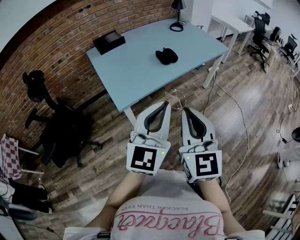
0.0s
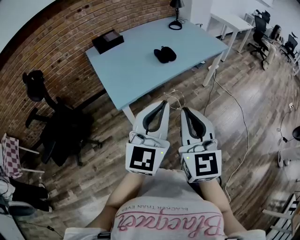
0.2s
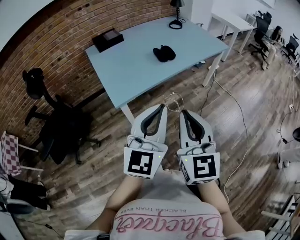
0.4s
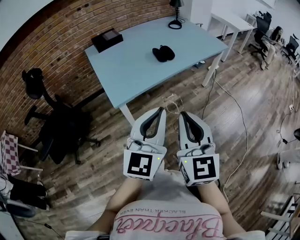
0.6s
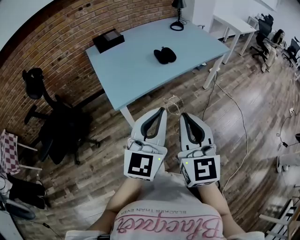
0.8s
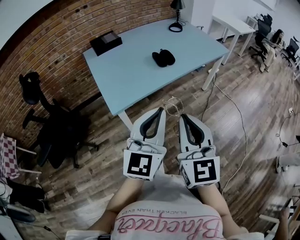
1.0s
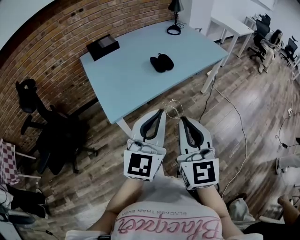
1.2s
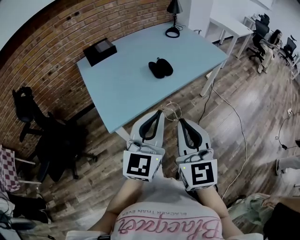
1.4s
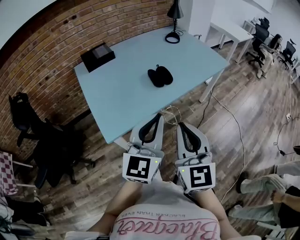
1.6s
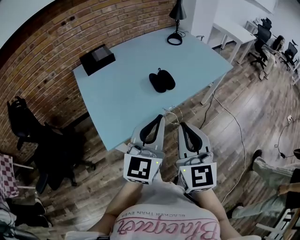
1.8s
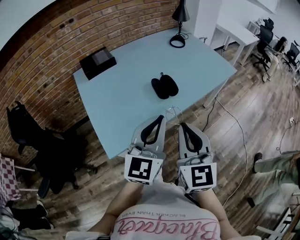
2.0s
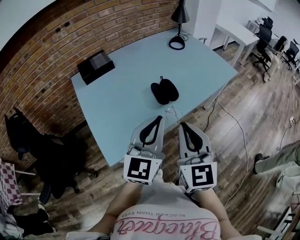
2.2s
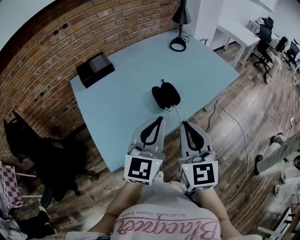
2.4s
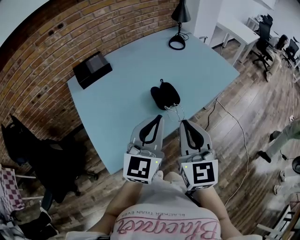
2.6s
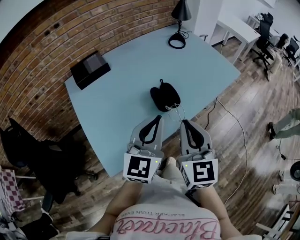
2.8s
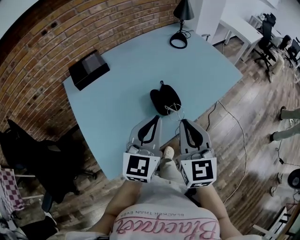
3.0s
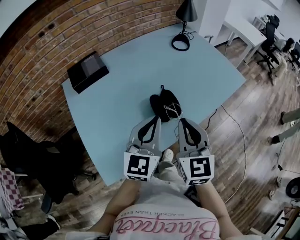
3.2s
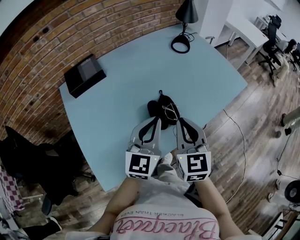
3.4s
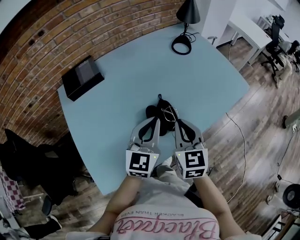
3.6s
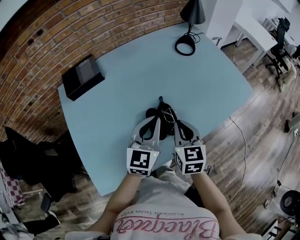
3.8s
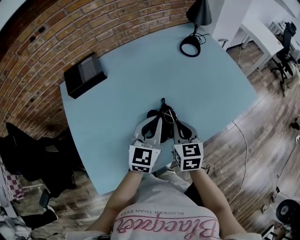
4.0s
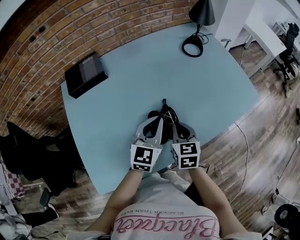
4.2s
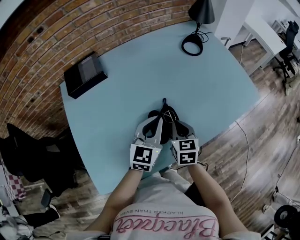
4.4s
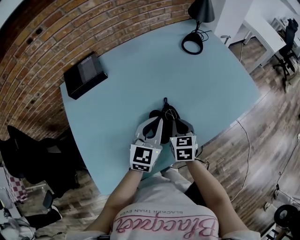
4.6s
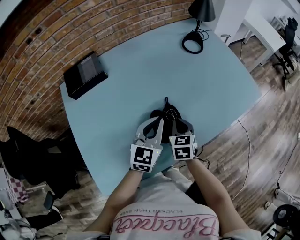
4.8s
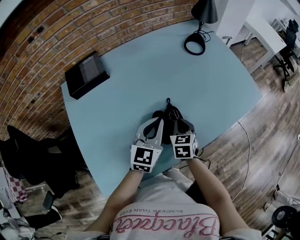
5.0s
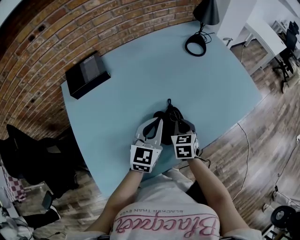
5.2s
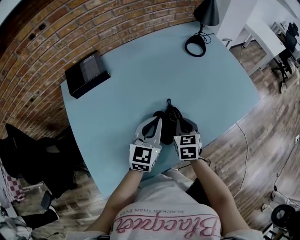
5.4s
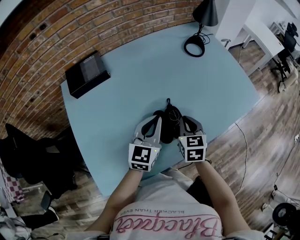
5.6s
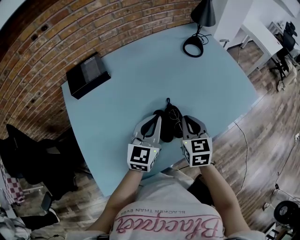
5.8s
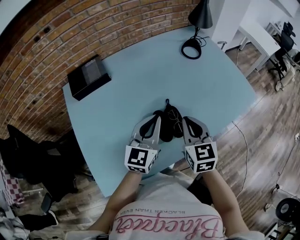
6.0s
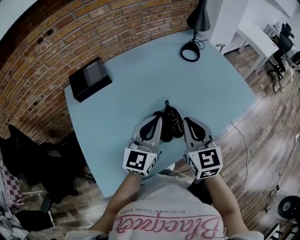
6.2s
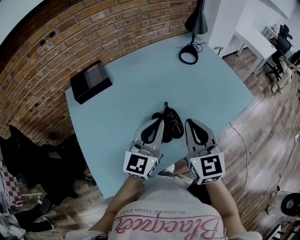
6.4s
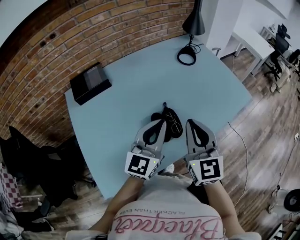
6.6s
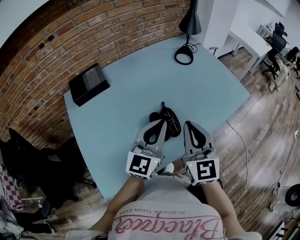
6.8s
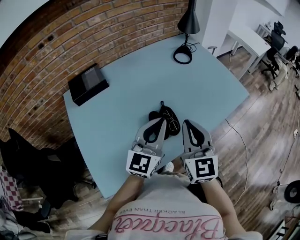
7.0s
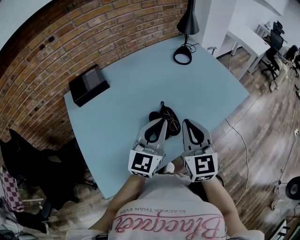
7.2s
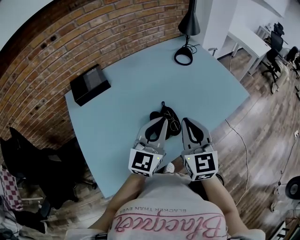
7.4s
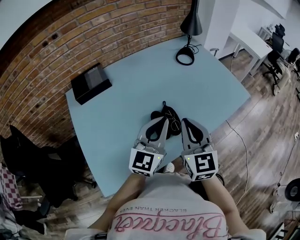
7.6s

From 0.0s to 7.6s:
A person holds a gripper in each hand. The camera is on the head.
From 0.0s to 1.6s: Both grippers move forward, about 15 cm.
From 1.6s to 3.0s: Both grippers move forward, approximately 25 cm.
From 3.0s to 4.6s: The right gripper shifts about 30 cm downward and forward, and rotates some 30 degrees; the left gripper heads forward and downward, covering some 20 cm.
From 4.6s to 6.0s: The right gripper goes approximately 15 cm upward, while the left gripper goes approximately 5 cm upward.
From 6.0s to 7.6s: Both grippers travel together upward and backward, about 10 cm.

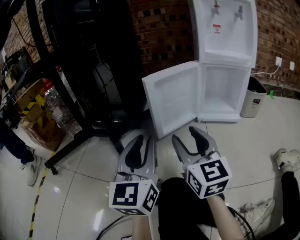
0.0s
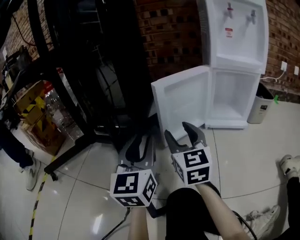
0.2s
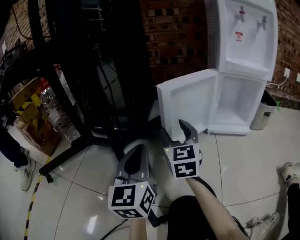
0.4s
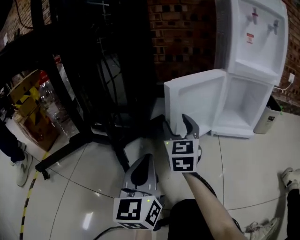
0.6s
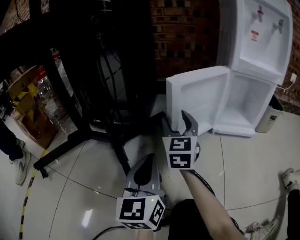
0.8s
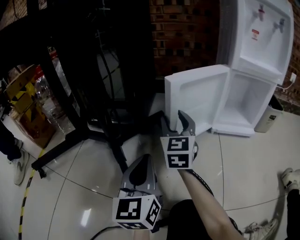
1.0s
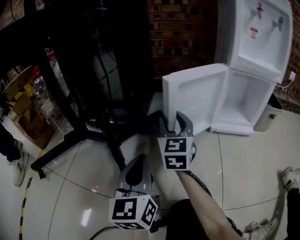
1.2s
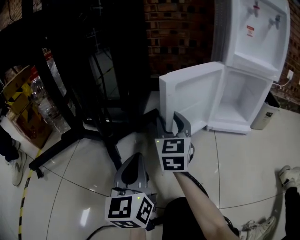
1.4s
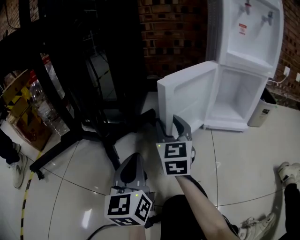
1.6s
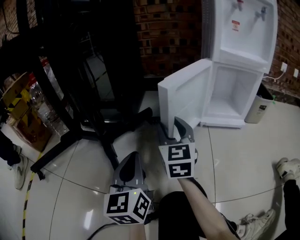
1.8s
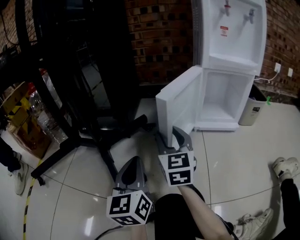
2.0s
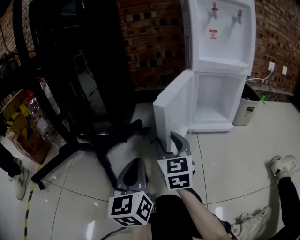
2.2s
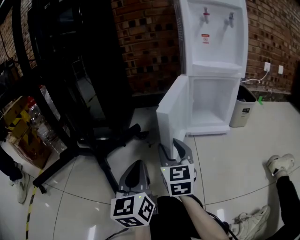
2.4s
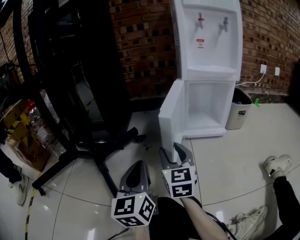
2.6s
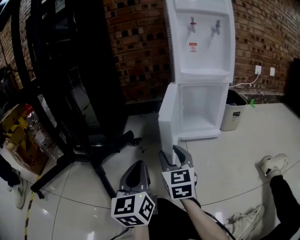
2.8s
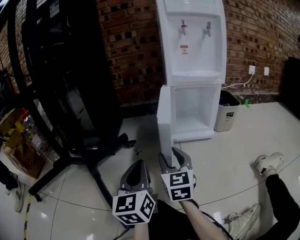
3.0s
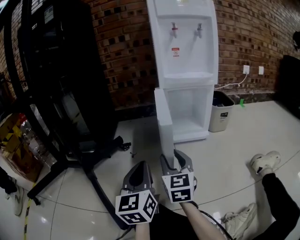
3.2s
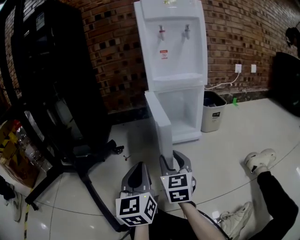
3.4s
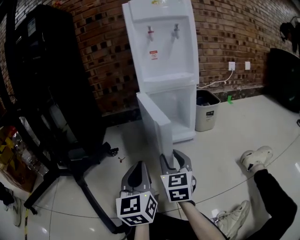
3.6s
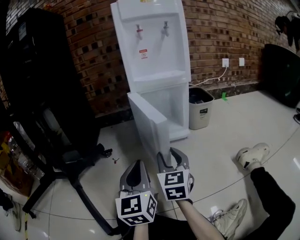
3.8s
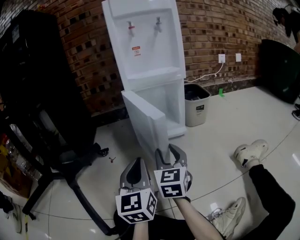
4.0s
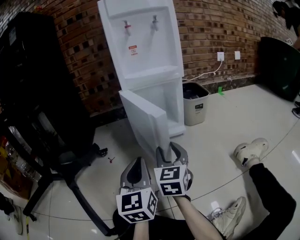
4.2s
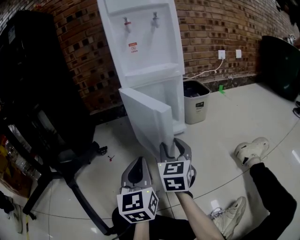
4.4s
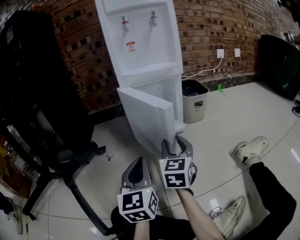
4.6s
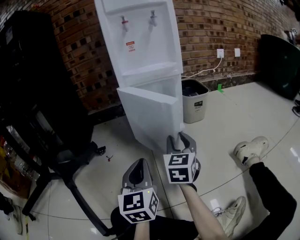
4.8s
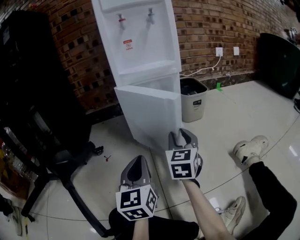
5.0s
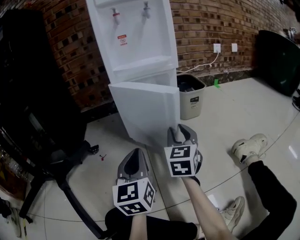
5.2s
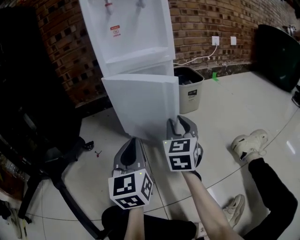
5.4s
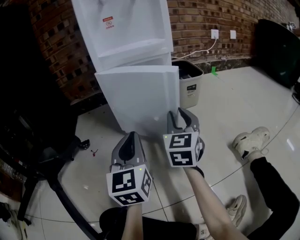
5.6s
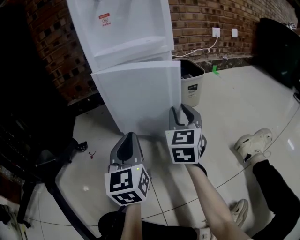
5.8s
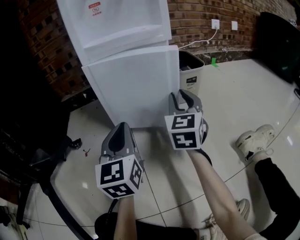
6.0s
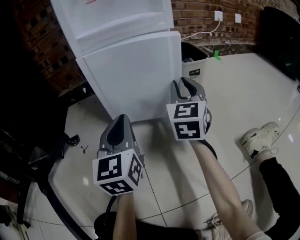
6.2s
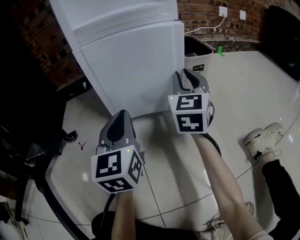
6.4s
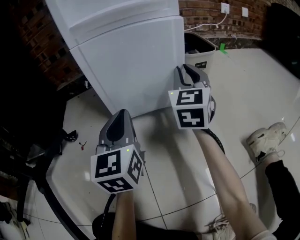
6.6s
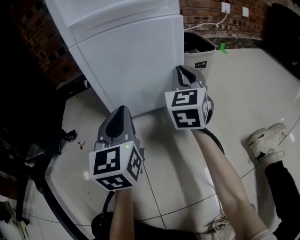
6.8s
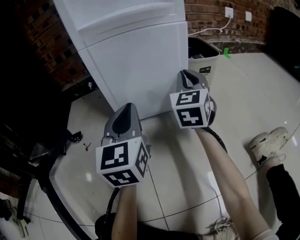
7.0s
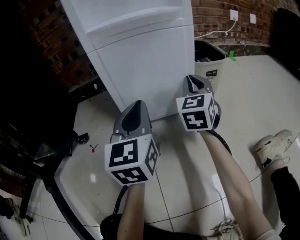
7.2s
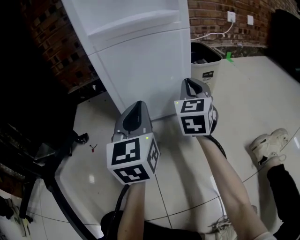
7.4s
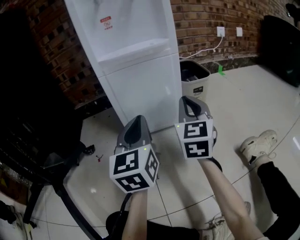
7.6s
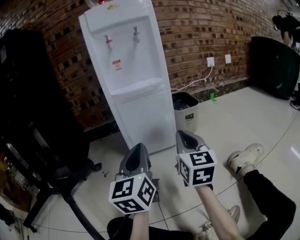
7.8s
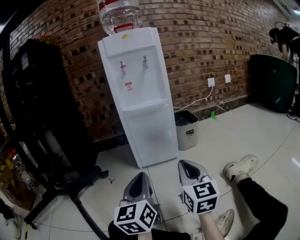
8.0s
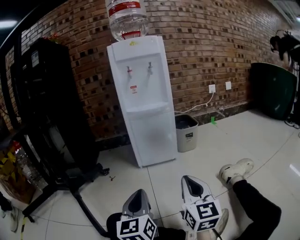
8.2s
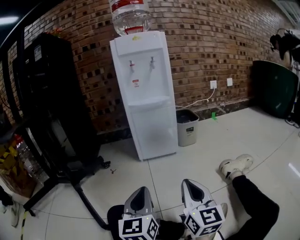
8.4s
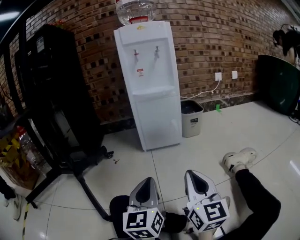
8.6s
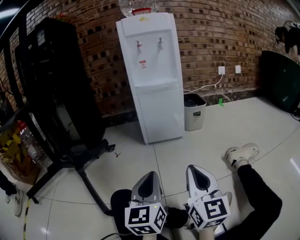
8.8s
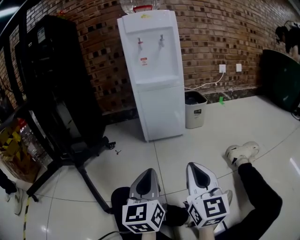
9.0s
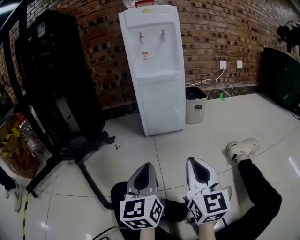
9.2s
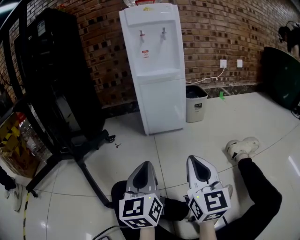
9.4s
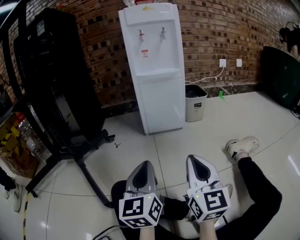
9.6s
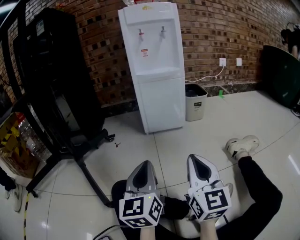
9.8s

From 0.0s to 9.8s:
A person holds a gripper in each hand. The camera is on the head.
From 0.0s to 1.4s: The right gripper shifts about 20 cm forward and to the left; the left gripper shifts about 15 cm downward, forward and to the left.
From 1.4s to 2.8s: The right gripper moves to the right and backward, some 20 cm; the left gripper is displaced to the right by about 10 cm.
From 2.8s to 4.2s: The grippers both shift to the right by roughly 15 cm.
From 4.2s to 5.6s: The right gripper heads forward and to the right, covering approximately 15 cm, while the left gripper goes about 10 cm forward.
From 5.6s to 7.0s: The two grippers go roughly 10 cm forward. The right gripper closes up.
From 7.0s to 8.4s: Both grippers move backward, some 40 cm. The right gripper turns by about 30 degrees.
From 8.4s to 9.8s: The grippers stay close to where they were, moving slightly.

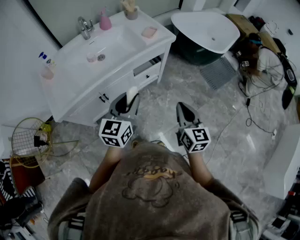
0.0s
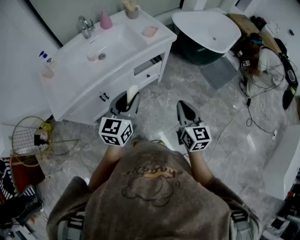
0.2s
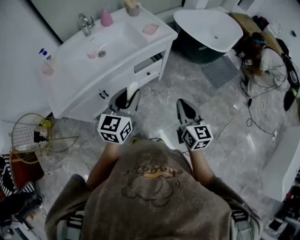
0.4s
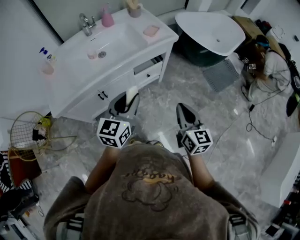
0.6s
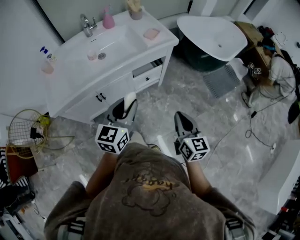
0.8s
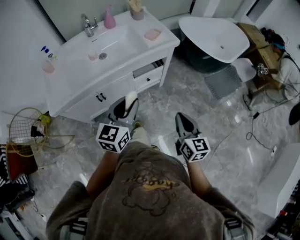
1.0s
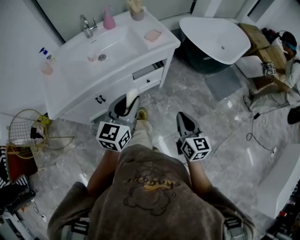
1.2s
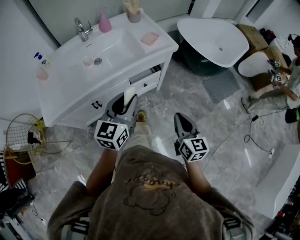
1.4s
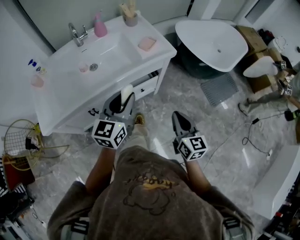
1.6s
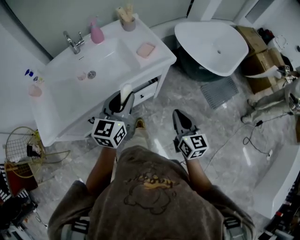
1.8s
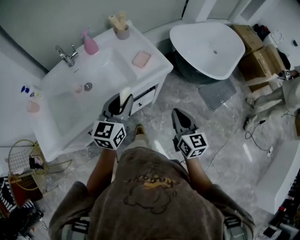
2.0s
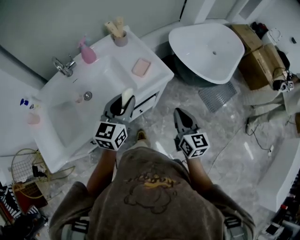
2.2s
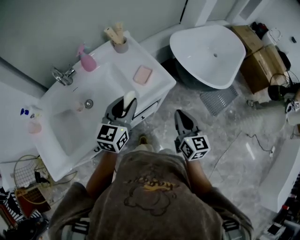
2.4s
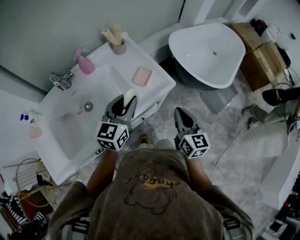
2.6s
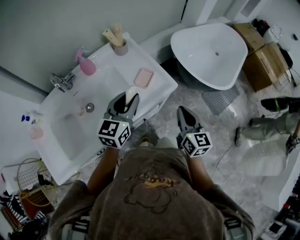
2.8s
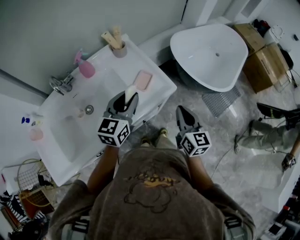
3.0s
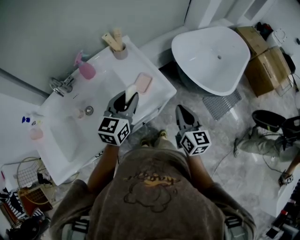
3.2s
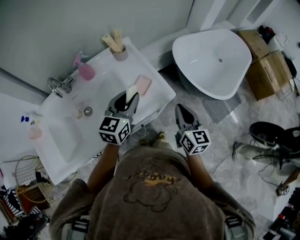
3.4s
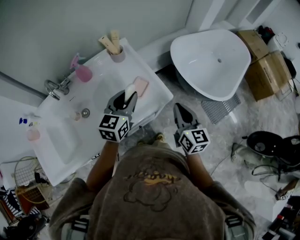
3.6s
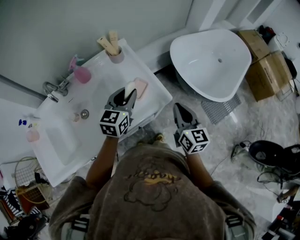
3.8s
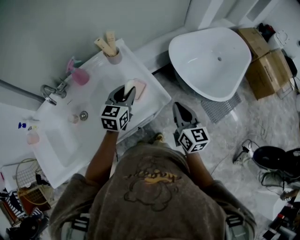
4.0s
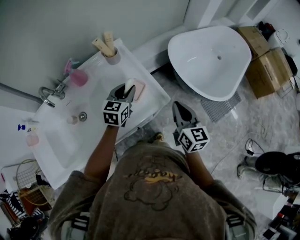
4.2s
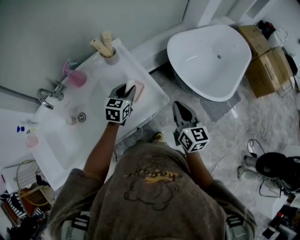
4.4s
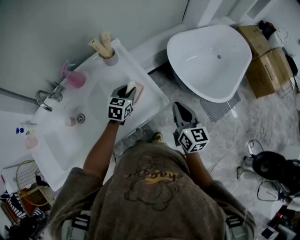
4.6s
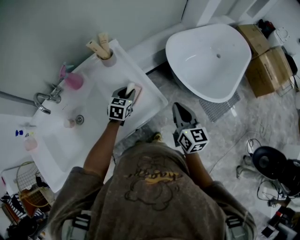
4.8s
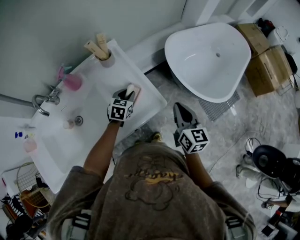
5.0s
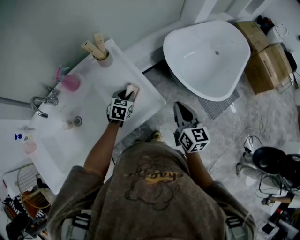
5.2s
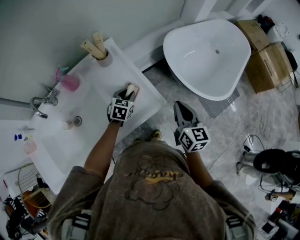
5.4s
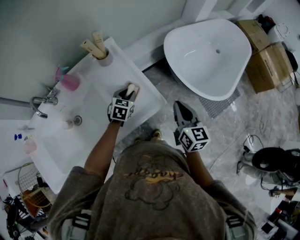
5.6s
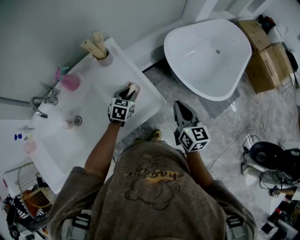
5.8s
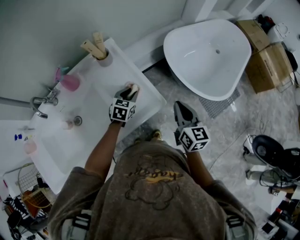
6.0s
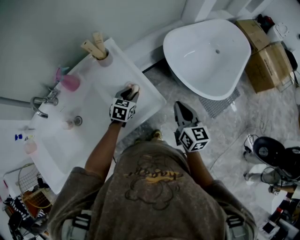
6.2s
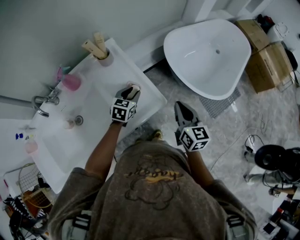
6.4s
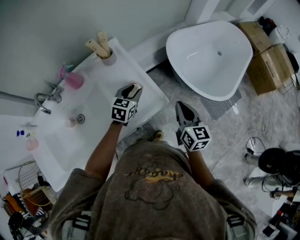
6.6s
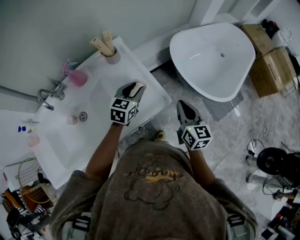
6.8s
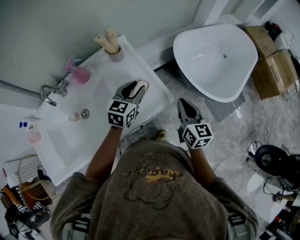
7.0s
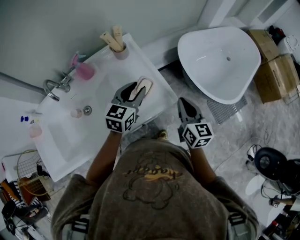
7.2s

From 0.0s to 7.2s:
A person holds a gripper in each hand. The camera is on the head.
From 0.0s to 1.4s: The right gripper is displaced forward, downward and to the right by approximately 10 cm; the left gripper shifts approximately 10 cm forward.
From 1.4s to 2.8s: The grippers both shift forward by approximately 35 cm.
From 2.8s to 4.4s: The right gripper heads forward, covering roughly 15 cm, while the left gripper heads forward and downward, covering roughly 20 cm.
From 4.4s to 5.8s: The left gripper moves downward, about 10 cm.
From 5.8s to 7.2s: The left gripper moves upward, approximately 15 cm, and changes its angle by about 20 degrees.
